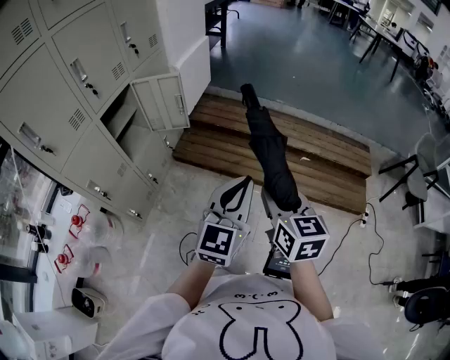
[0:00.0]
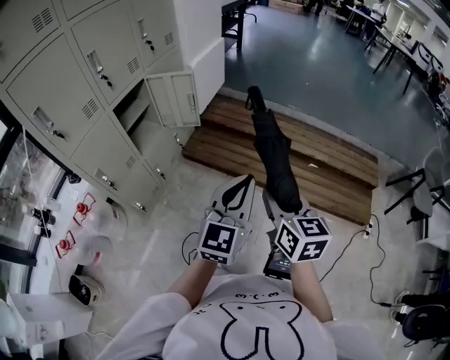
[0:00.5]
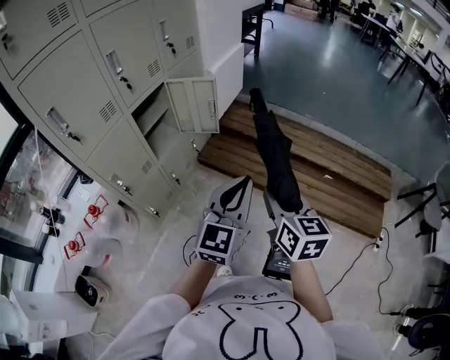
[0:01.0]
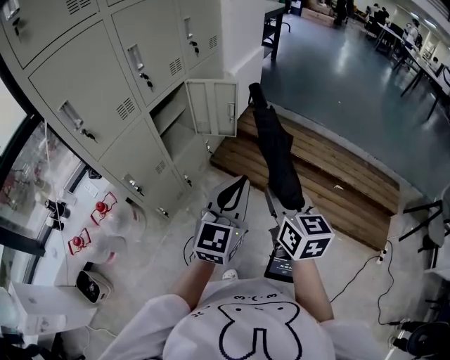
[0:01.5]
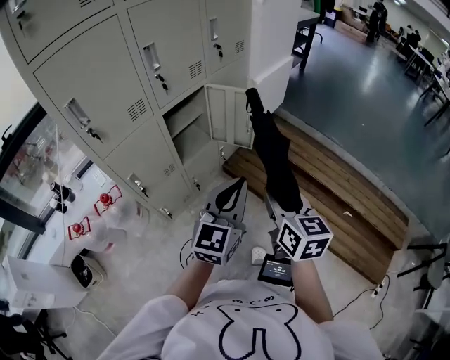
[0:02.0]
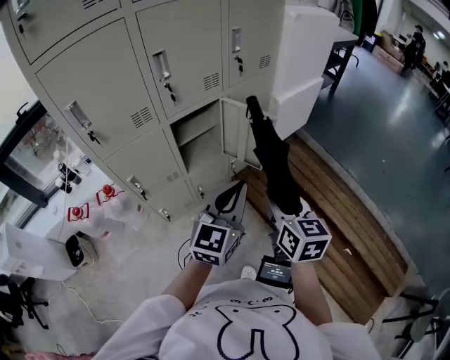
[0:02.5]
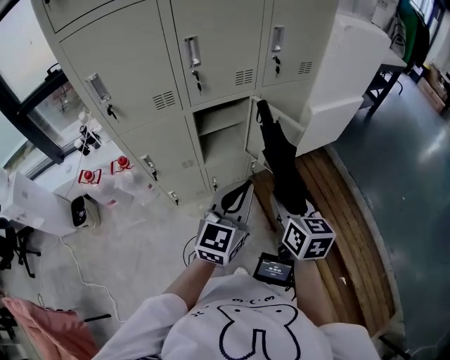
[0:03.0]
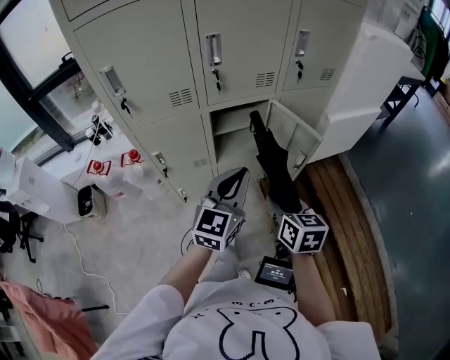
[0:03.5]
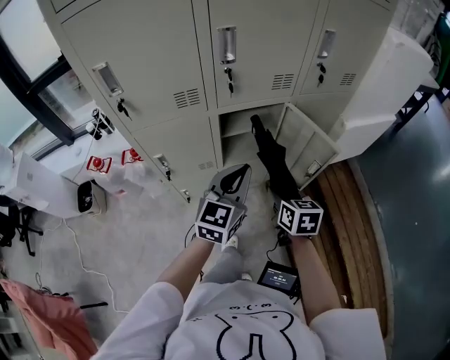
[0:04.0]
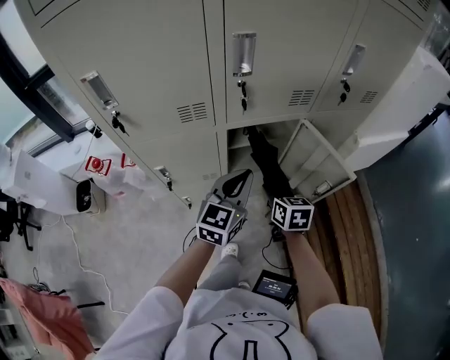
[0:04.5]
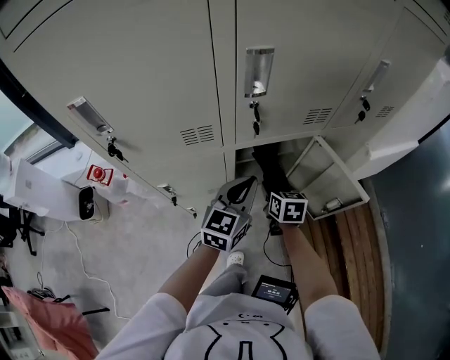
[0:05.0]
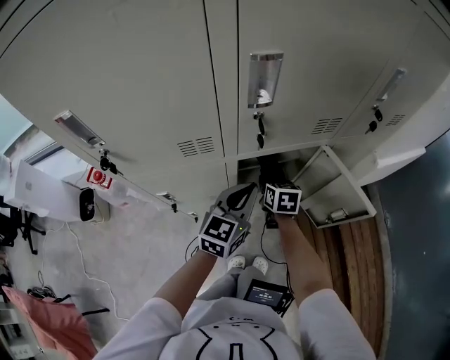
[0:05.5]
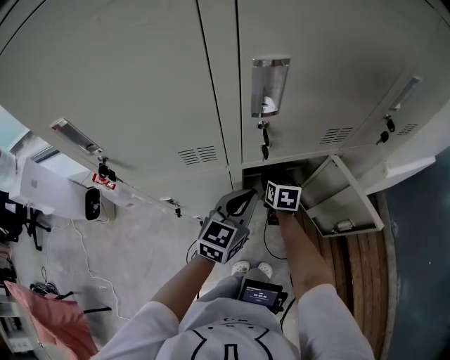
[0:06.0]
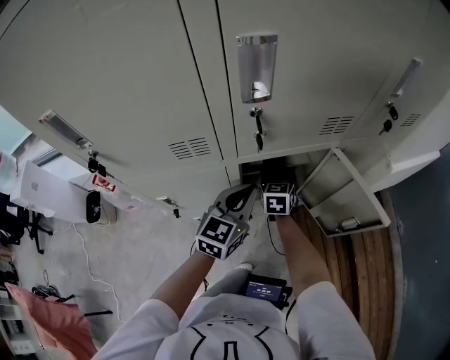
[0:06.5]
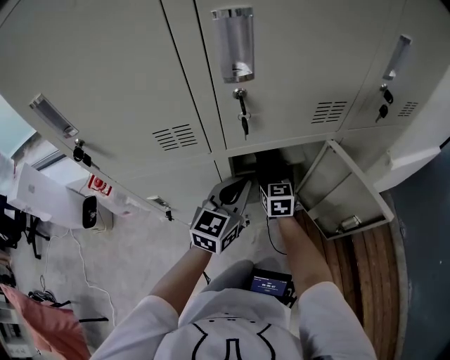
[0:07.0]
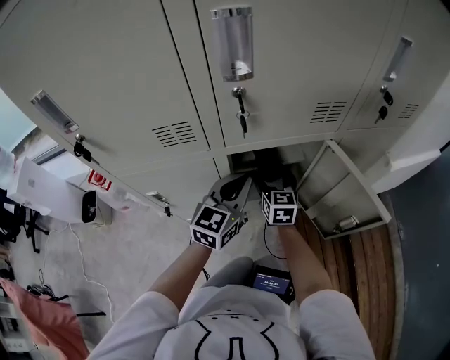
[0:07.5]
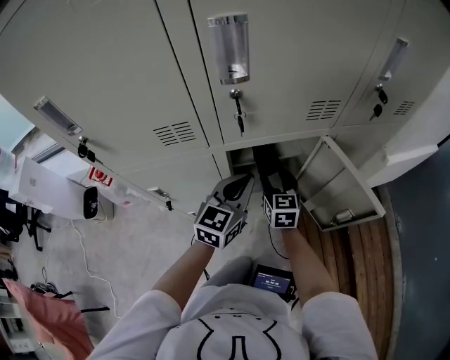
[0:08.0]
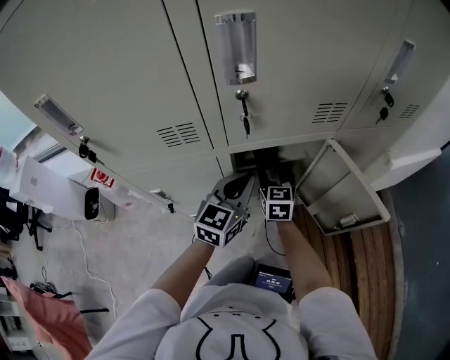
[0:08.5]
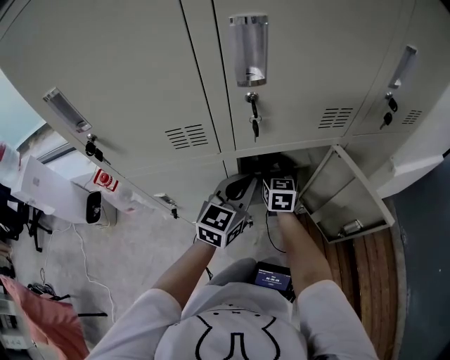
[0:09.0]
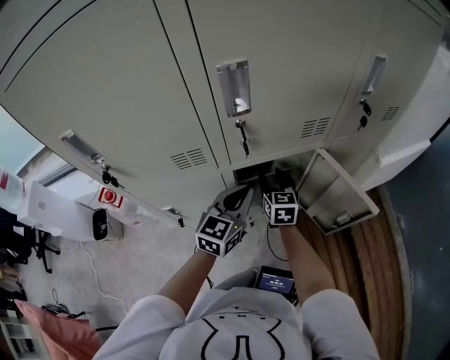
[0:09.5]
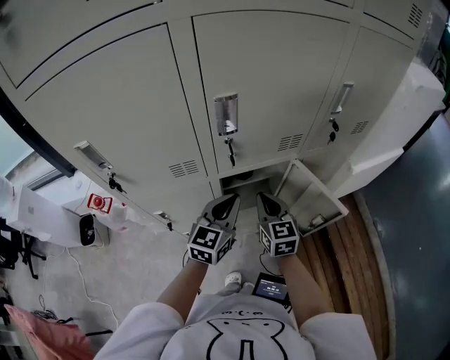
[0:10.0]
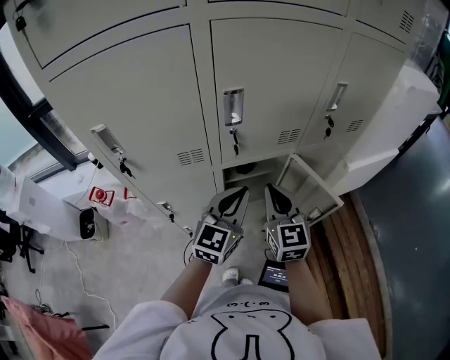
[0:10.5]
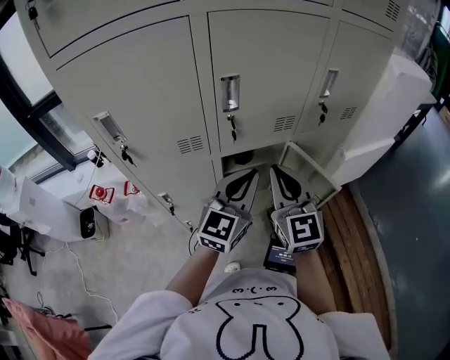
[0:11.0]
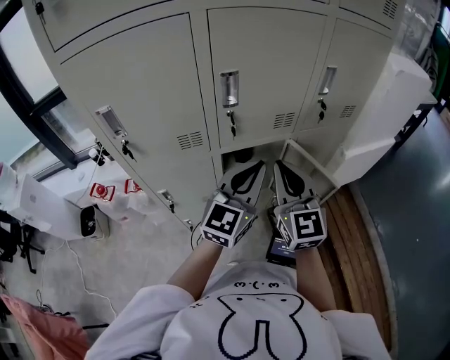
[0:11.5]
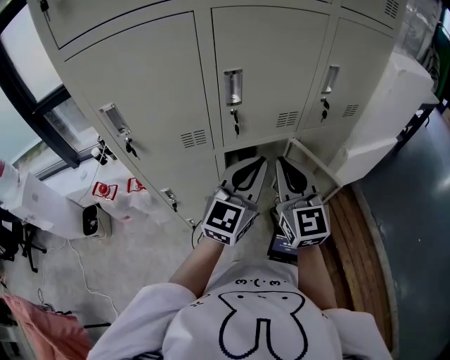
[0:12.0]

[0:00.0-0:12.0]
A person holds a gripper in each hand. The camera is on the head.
0.0 to 2.0 s: The grippers both shift to the left and forward by about 25 cm. The right gripper swivels some 20 degrees, while the left gripper changes its angle by some 20 degrees.
2.0 to 4.0 s: The left gripper ends up roughly 25 cm from where it was, and changes its angle by approximately 30 degrees. Meanwhile the right gripper ends up about 35 cm from where it was, and turns by roughly 40 degrees.
4.0 to 6.0 s: The right gripper moves forward, downward and to the left, some 35 cm. The left gripper travels forward and downward by approximately 20 cm.
6.0 to 8.0 s: The right gripper changes place by approximately 5 cm, turns by approximately 20 degrees, and opens and closes again.
8.0 to 10.0 s: The right gripper is displaced upward and backward by about 15 cm, and closes up, while the left gripper heads upward, covering some 10 cm.
10.0 to 12.0 s: The right gripper is displaced upward and backward by some 20 cm, and swivels about 30 degrees, while the left gripper goes approximately 15 cm upward, backward and to the right, and turns by some 20 degrees.

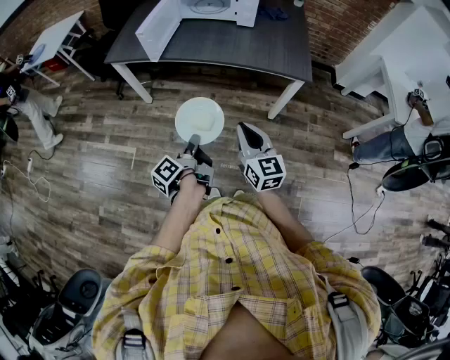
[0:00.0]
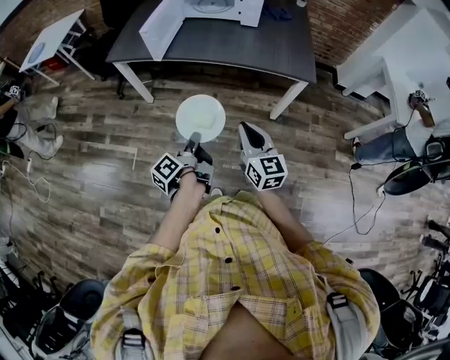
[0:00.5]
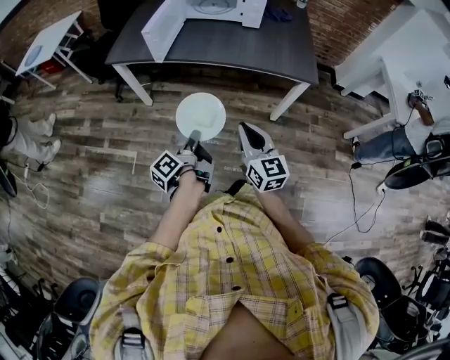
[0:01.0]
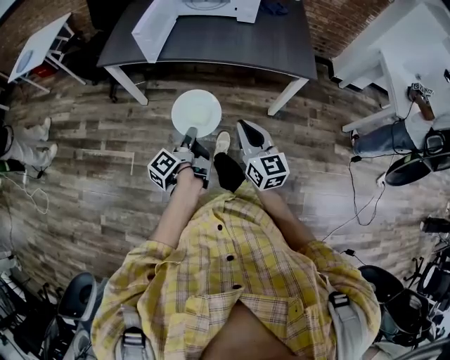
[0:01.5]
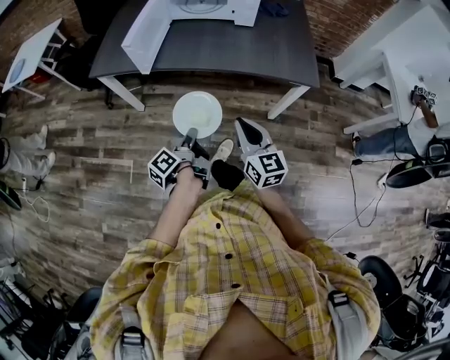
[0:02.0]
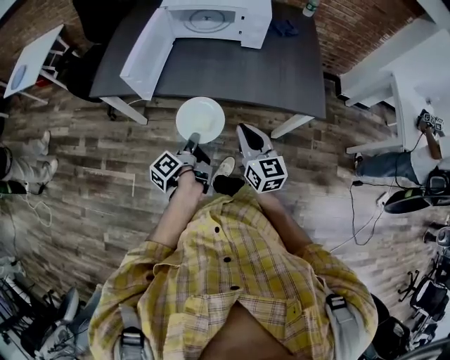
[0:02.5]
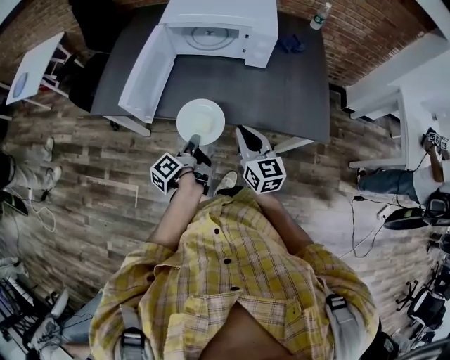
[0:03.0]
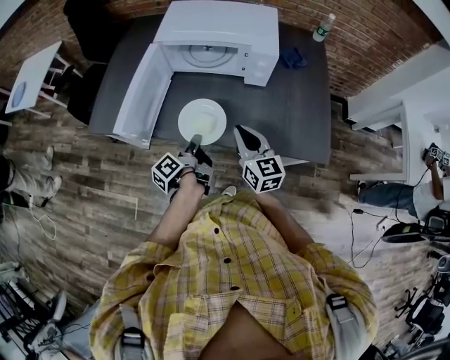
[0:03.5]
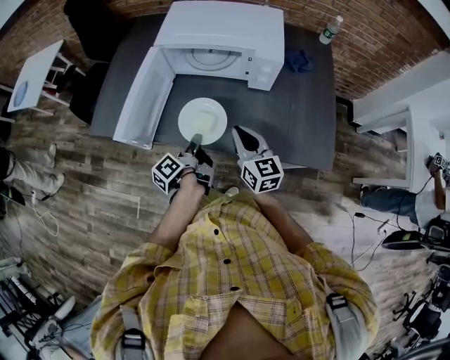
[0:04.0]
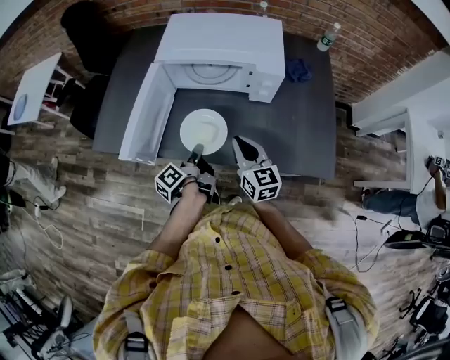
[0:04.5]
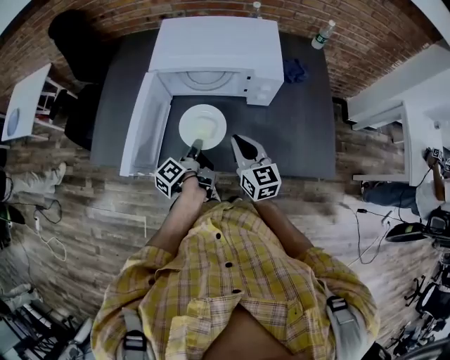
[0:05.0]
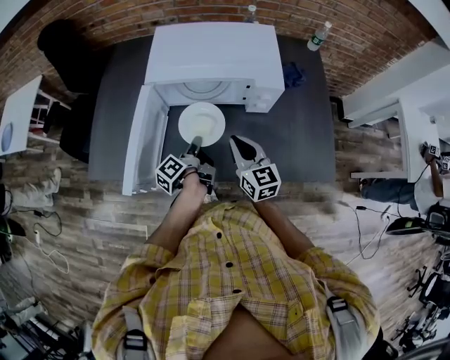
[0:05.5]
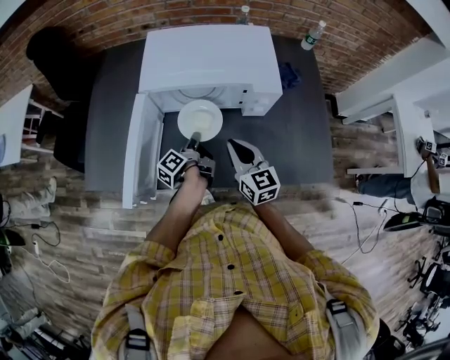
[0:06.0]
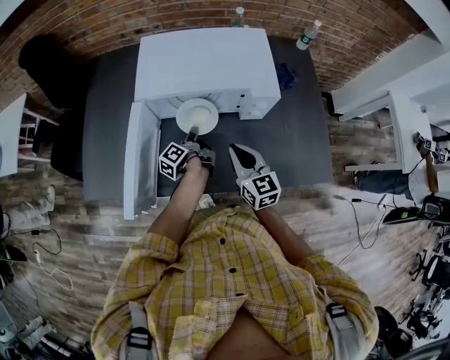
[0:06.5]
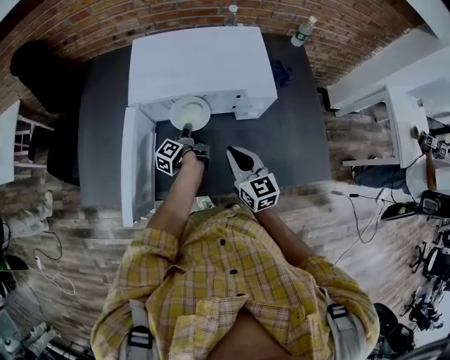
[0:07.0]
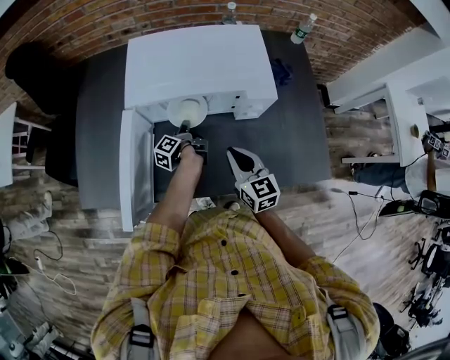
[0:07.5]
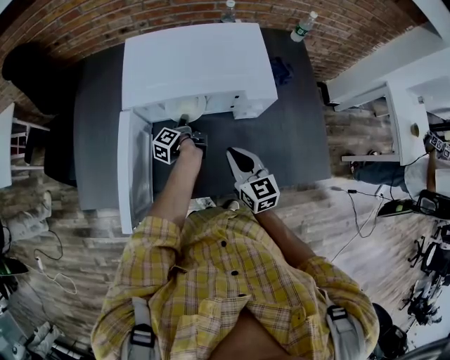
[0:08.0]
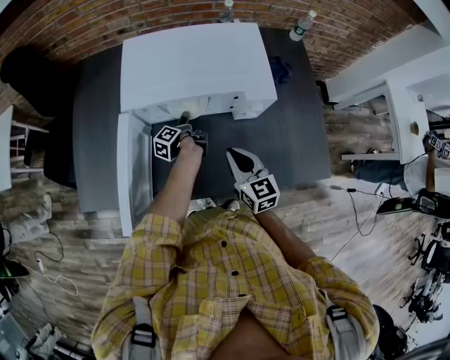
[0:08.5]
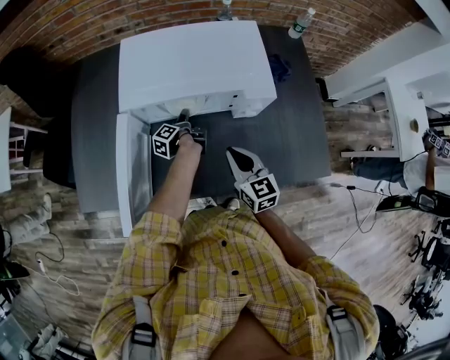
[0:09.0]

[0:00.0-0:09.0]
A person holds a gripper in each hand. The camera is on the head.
0.0 to 2.0 s: The right gripper ends up about 15 cm from where it was.
2.0 to 4.5 s: The right gripper moves some 40 cm.
4.5 to 7.0 s: The right gripper moves some 10 cm.

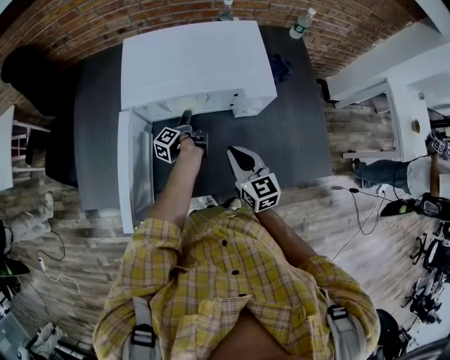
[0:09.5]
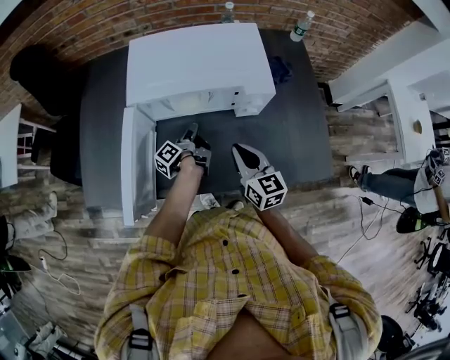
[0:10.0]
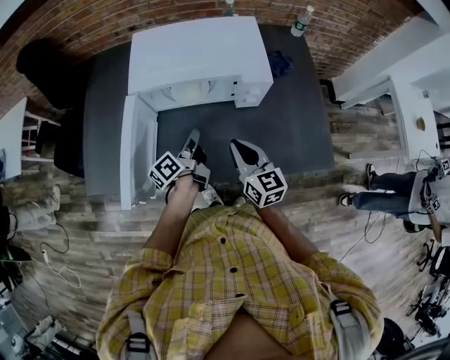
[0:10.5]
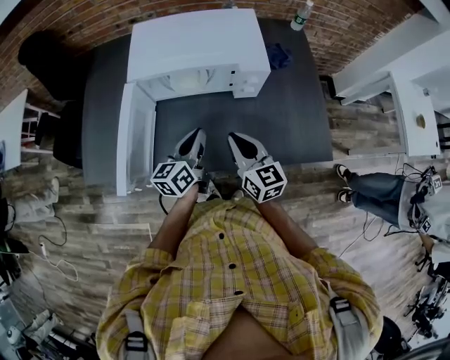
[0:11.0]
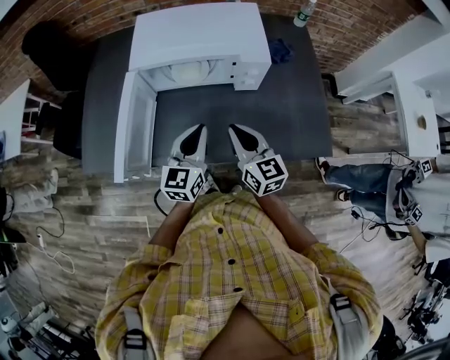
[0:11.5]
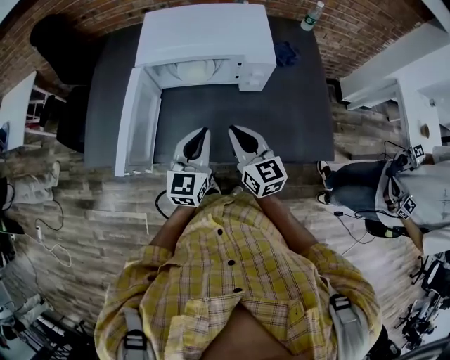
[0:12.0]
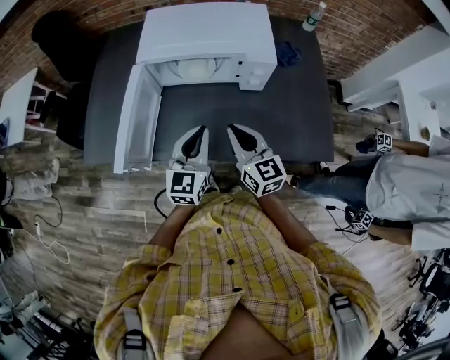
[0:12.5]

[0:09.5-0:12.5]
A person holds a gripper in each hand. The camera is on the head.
9.5 to 11.0 s: The right gripper ends up approximately 10 cm from where it was.

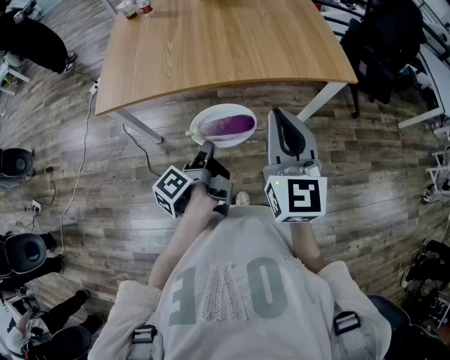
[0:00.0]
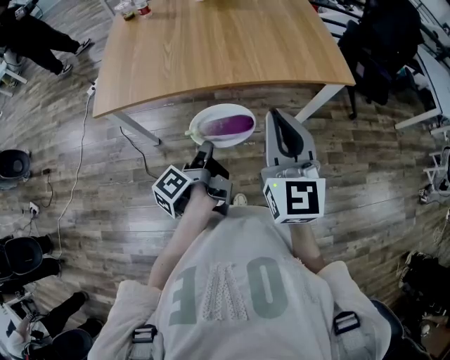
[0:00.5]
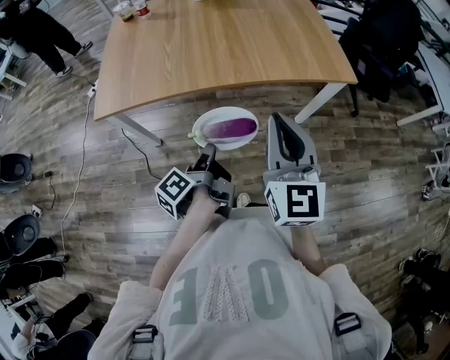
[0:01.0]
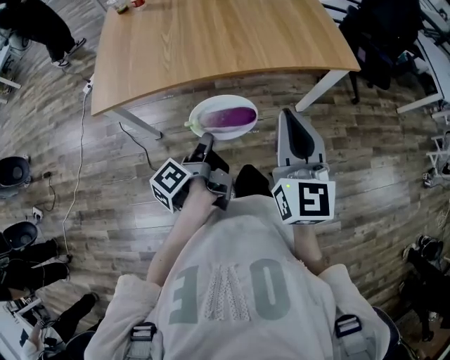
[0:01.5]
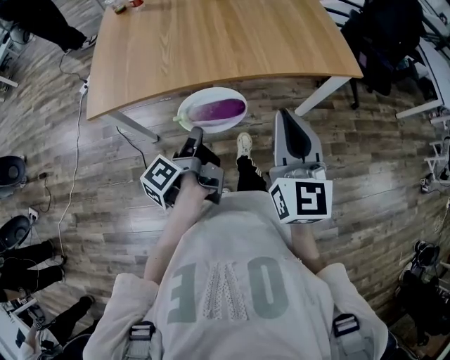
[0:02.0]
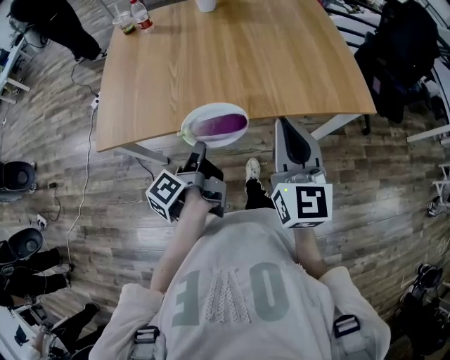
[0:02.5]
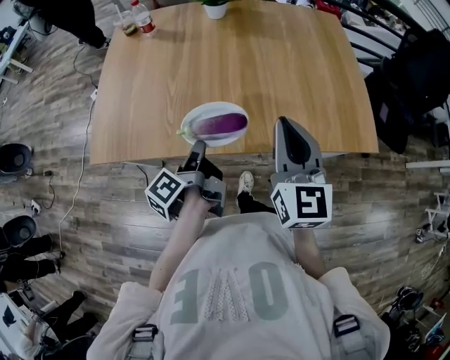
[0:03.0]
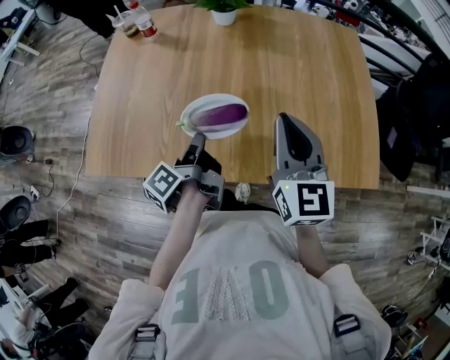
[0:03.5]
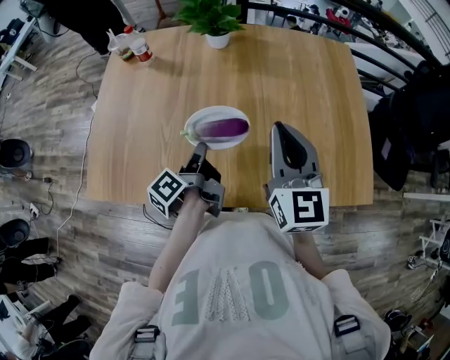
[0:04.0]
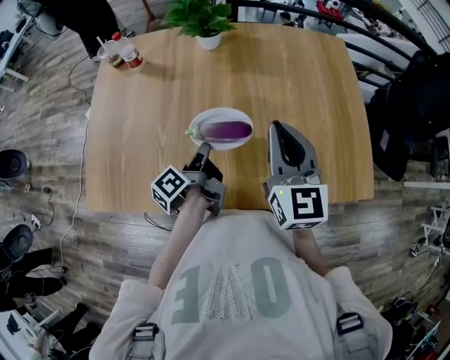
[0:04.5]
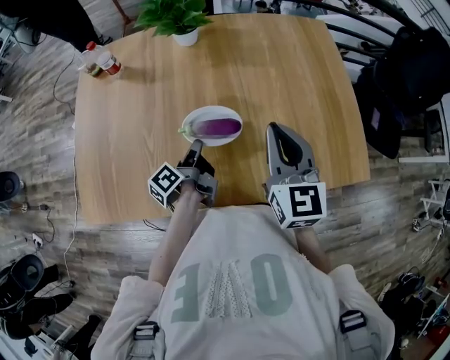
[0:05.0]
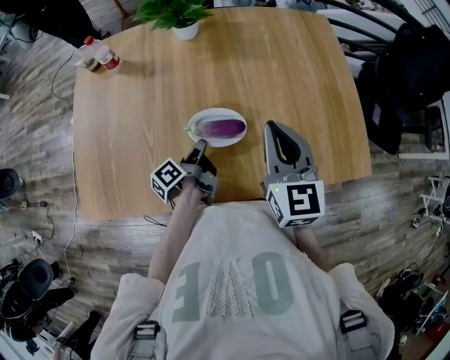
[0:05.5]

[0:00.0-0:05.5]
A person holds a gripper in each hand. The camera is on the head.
2.0 to 3.5 s: The right gripper changes place by some 35 cm.
3.5 to 5.5 s: The right gripper ends up some 5 cm from where it was.
